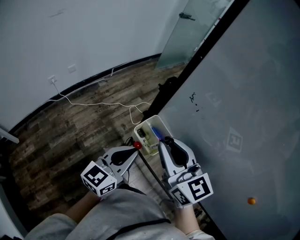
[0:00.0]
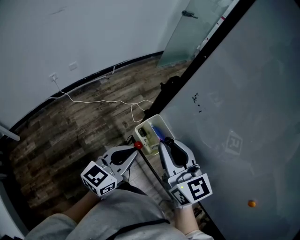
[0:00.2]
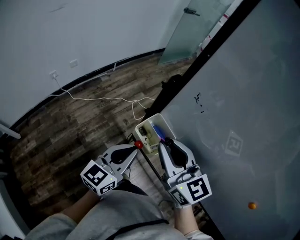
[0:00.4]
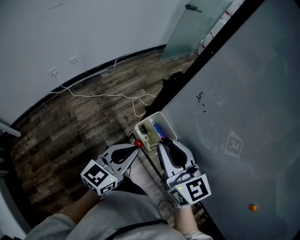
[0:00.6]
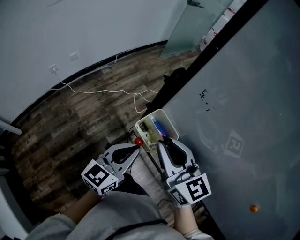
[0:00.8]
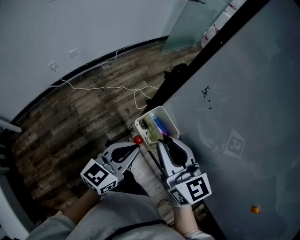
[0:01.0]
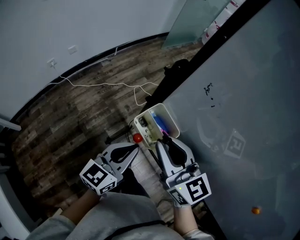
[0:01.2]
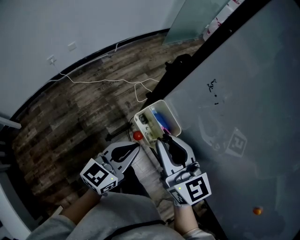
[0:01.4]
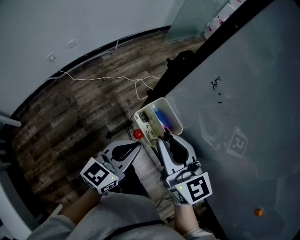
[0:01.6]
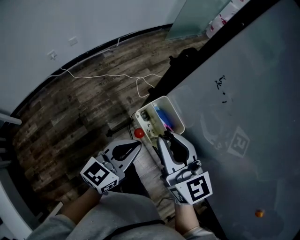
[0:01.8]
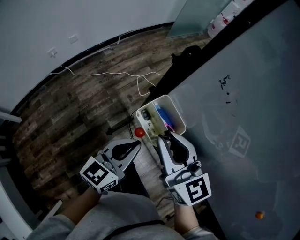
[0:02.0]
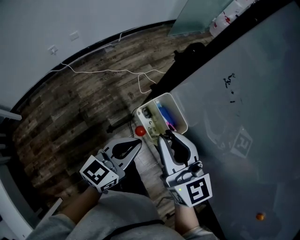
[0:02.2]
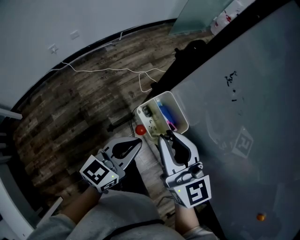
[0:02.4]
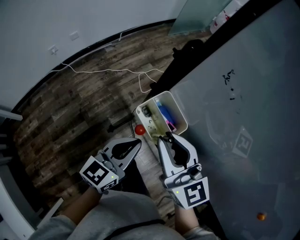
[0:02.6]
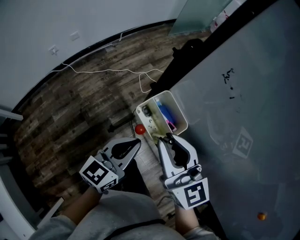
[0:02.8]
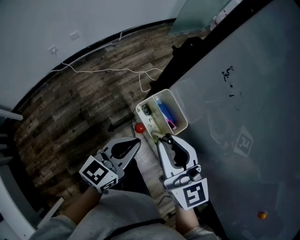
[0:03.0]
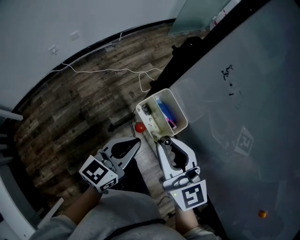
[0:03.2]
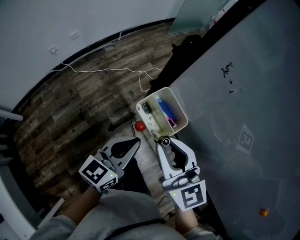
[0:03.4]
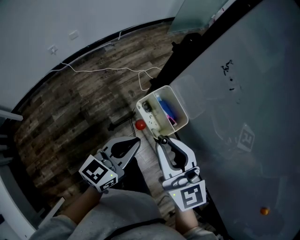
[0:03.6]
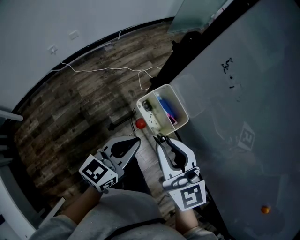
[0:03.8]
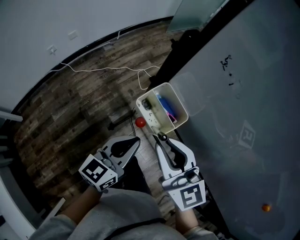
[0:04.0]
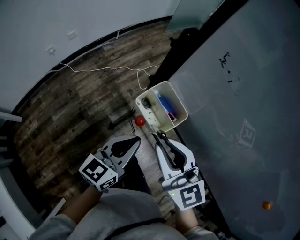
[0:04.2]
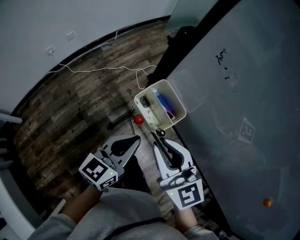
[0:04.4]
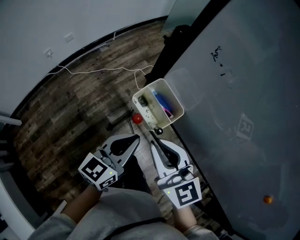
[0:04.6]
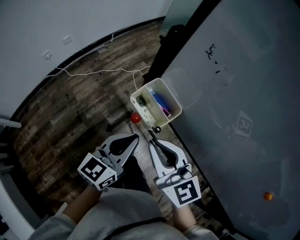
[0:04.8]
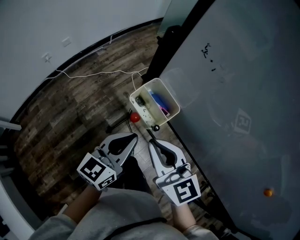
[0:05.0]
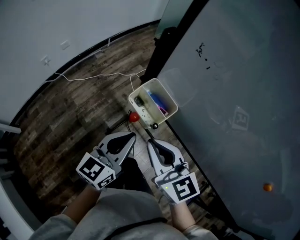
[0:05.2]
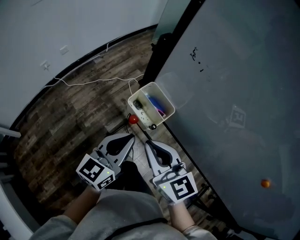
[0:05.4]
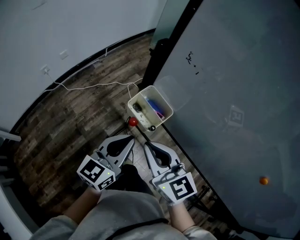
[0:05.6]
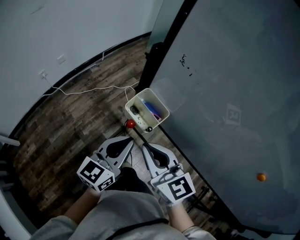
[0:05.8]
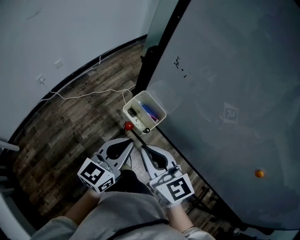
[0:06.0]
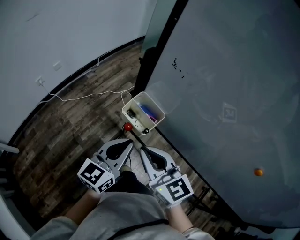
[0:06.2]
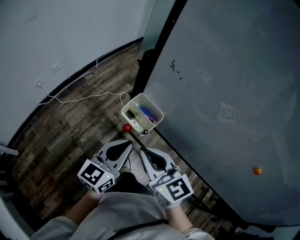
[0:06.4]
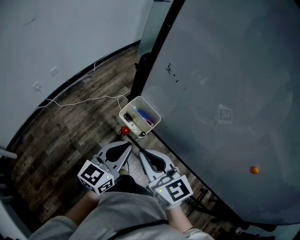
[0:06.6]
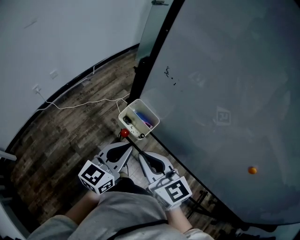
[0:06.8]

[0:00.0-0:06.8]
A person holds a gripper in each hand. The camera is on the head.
0:00.0 to 0:01.4: Both grippers travel together downward, approximately 5 cm.
0:01.4 to 0:04.0: The grippers stay close to where they were, moving slightly.
0:04.0 to 0:05.4: The grippers make only small movements.
0:05.4 to 0:06.8: There are only small adjustments of the grippers.

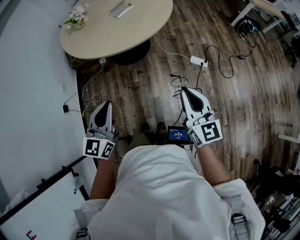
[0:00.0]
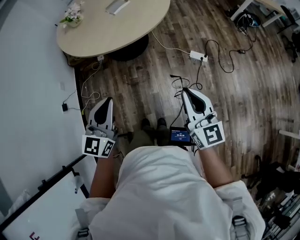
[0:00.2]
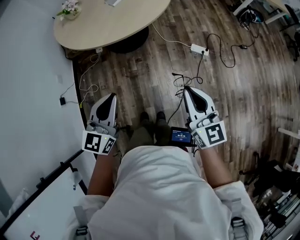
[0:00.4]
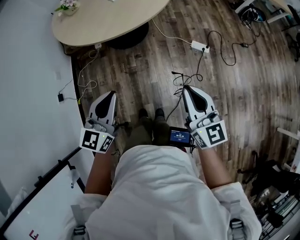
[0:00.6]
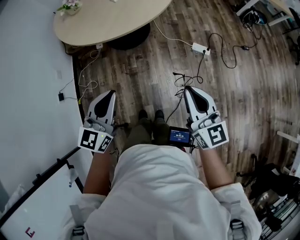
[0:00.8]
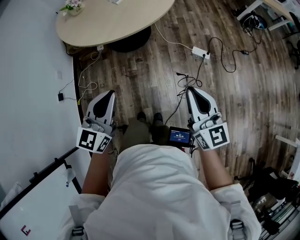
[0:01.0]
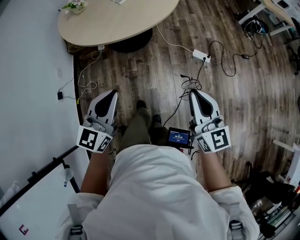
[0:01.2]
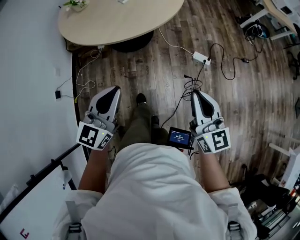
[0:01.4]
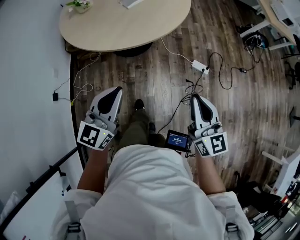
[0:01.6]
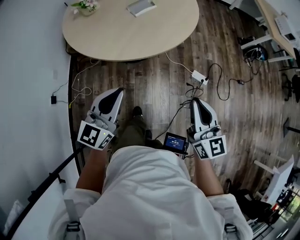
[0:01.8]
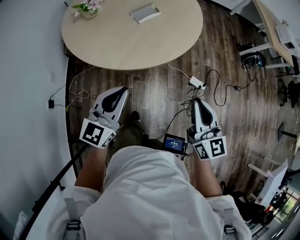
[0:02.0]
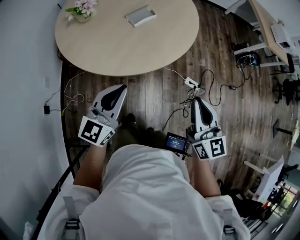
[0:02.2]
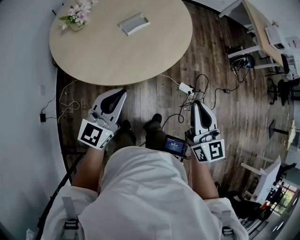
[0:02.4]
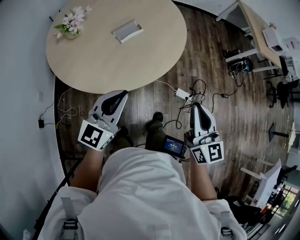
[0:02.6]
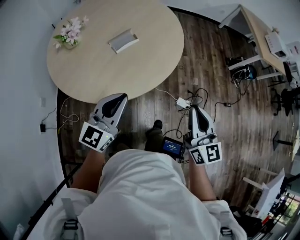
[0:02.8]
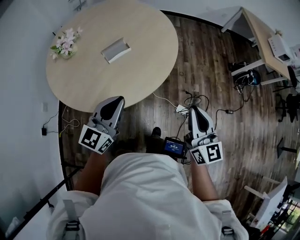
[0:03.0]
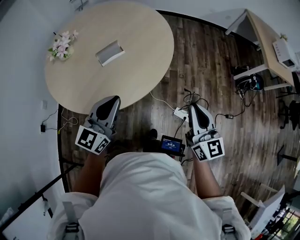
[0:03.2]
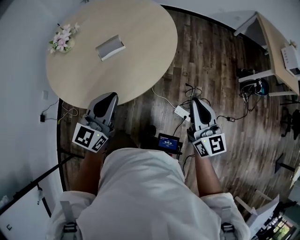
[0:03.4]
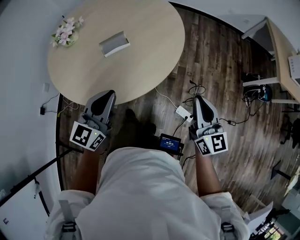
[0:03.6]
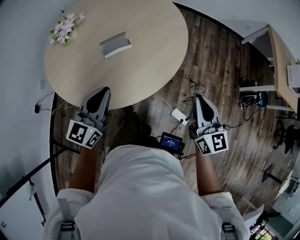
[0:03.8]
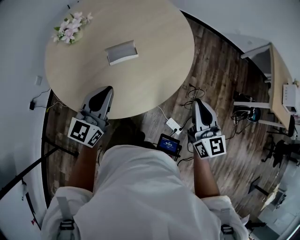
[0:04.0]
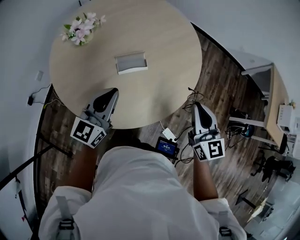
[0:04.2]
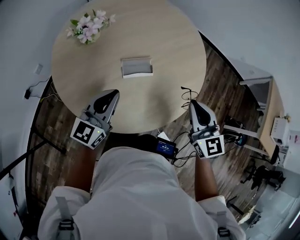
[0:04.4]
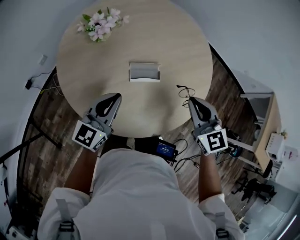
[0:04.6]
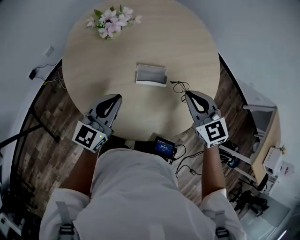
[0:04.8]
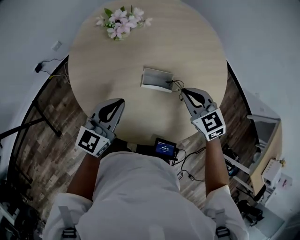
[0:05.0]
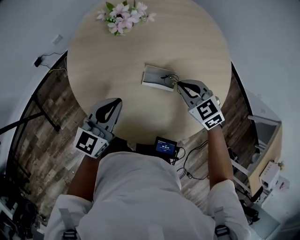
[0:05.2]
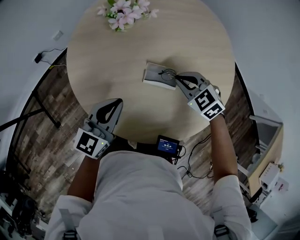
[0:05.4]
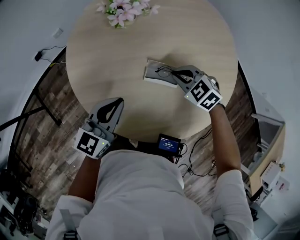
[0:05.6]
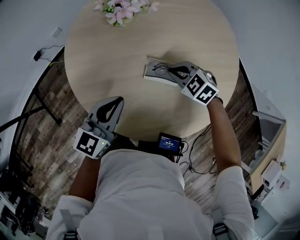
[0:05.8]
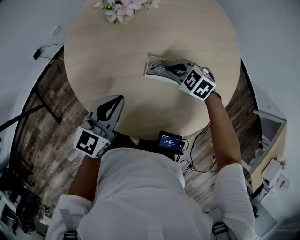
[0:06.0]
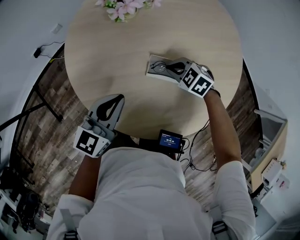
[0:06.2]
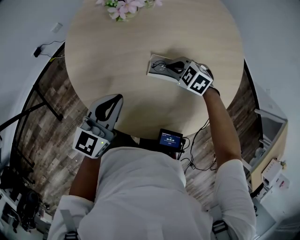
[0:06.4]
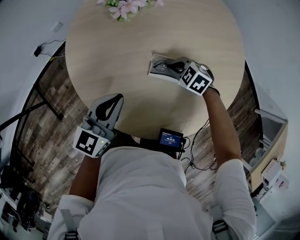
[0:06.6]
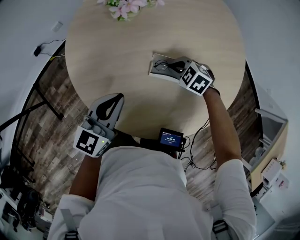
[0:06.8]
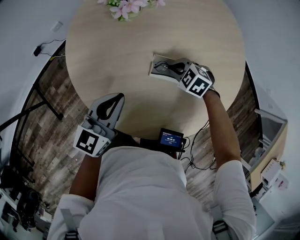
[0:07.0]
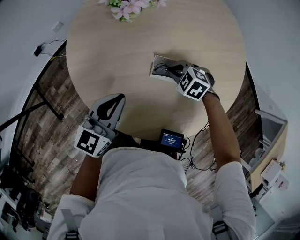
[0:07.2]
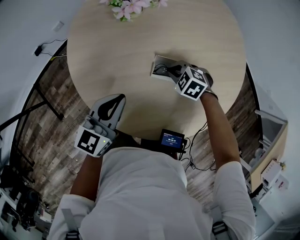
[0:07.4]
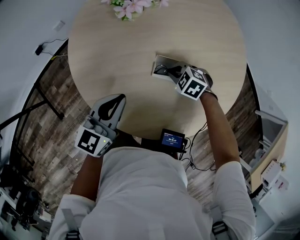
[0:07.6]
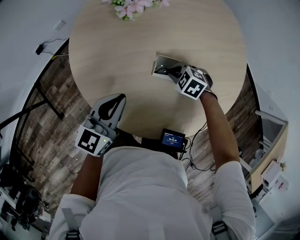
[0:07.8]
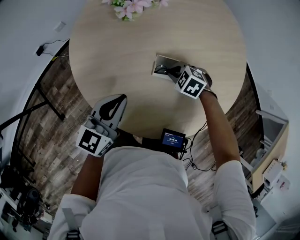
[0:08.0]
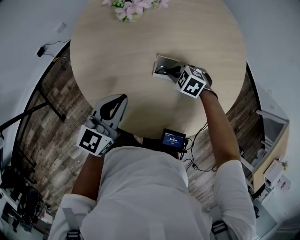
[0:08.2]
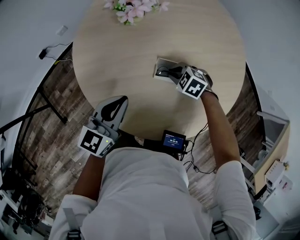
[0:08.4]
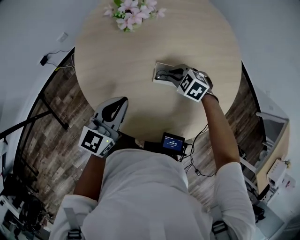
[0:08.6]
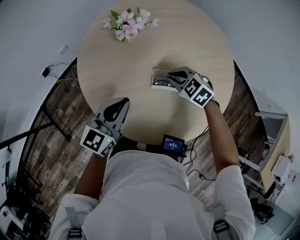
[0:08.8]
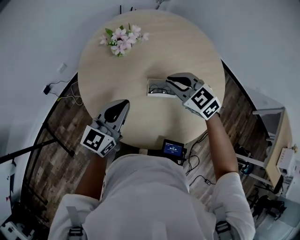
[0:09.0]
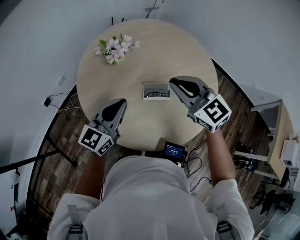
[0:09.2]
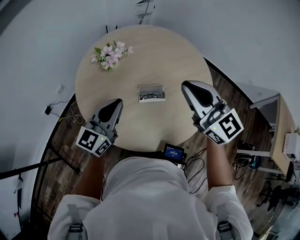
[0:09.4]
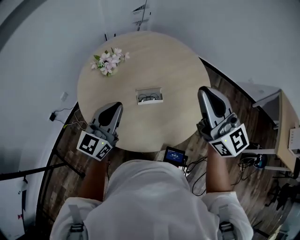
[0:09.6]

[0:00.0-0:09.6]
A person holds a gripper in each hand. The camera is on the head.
0:00.0 to 0:01.6: Both grippers travel together forward, approximately 10 cm.
0:01.6 to 0:03.2: Both grippers move forward, approximately 35 cm.
0:03.2 to 0:04.8: The right gripper moves roughly 50 cm, and angles its fingers downward, by about 30 degrees. Meanwhile the left gripper changes place by some 30 cm, and changes its angle by roughly 30 degrees.
0:04.8 to 0:06.4: The right gripper moves downward, about 25 cm, and angles its fingers downward, by about 30 degrees.
0:06.4 to 0:08.0: There are only small adjustments of the grippers.
0:08.0 to 0:09.6: The left gripper shifts about 20 cm upward, and turns by some 20 degrees, while the right gripper moves upward, some 50 cm, and tilts its fingers approximately 80 degrees upward.

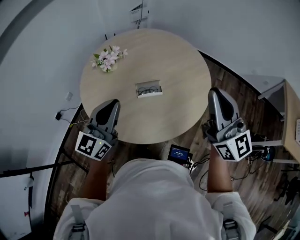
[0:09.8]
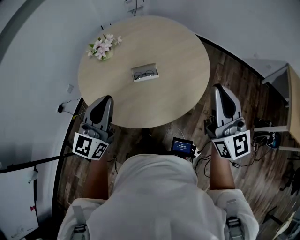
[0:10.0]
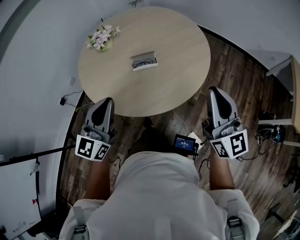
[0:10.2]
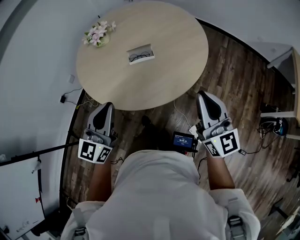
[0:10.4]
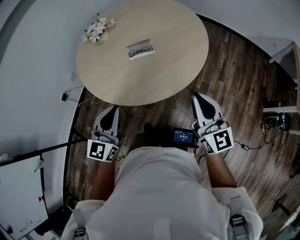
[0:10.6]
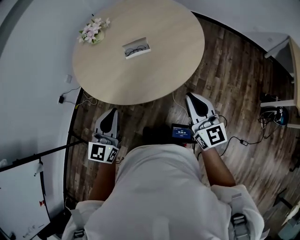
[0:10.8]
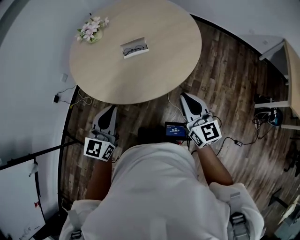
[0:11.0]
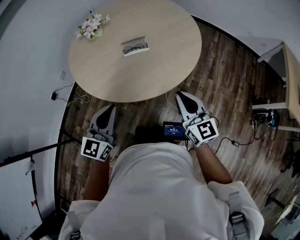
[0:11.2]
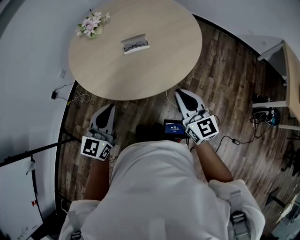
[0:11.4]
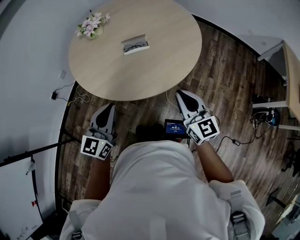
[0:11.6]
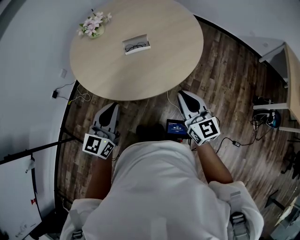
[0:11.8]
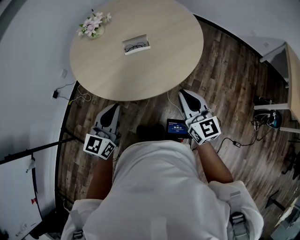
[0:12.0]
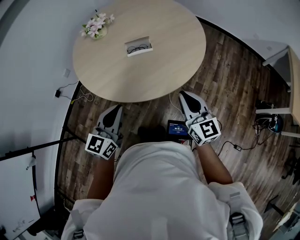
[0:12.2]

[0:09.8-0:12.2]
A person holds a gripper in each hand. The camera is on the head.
0:09.8 to 0:11.0: The right gripper heads downward and backward, covering approximately 30 cm, and rotates about 20 degrees, while the left gripper is displaced backward and downward by approximately 20 cm.
0:11.0 to 0:12.2: The grippers move only a little.

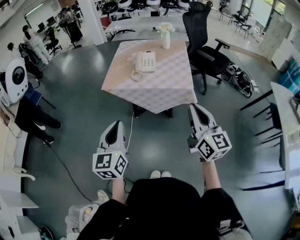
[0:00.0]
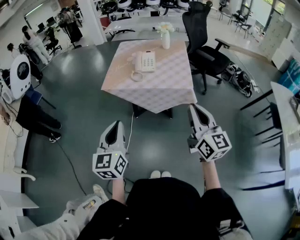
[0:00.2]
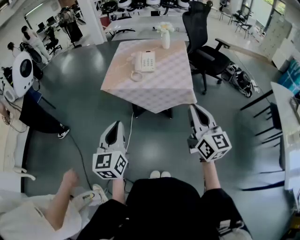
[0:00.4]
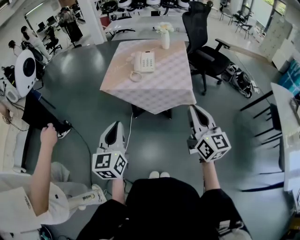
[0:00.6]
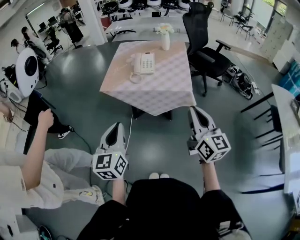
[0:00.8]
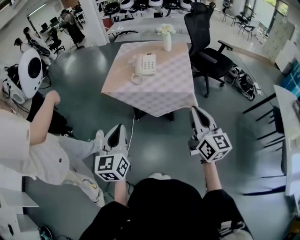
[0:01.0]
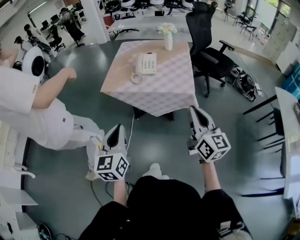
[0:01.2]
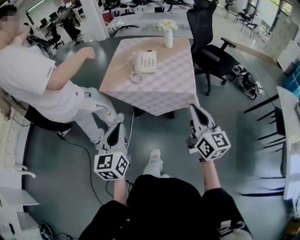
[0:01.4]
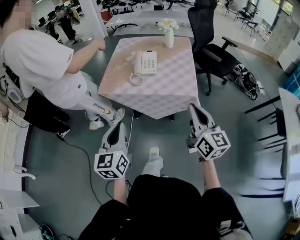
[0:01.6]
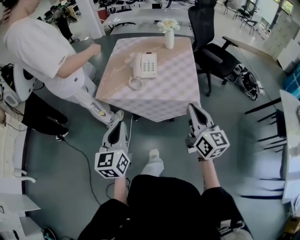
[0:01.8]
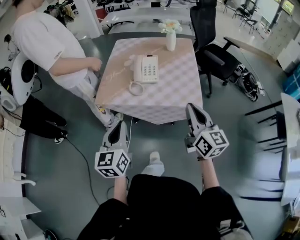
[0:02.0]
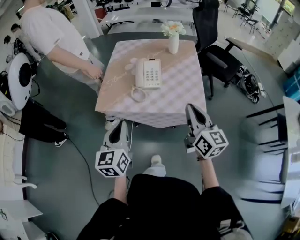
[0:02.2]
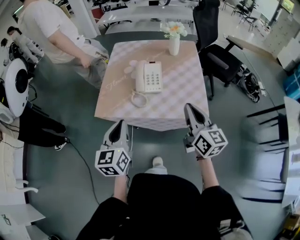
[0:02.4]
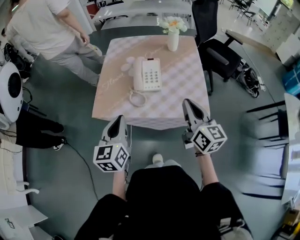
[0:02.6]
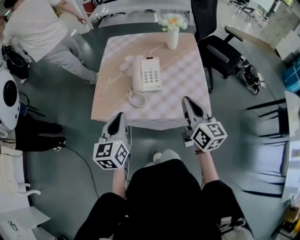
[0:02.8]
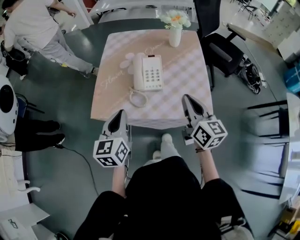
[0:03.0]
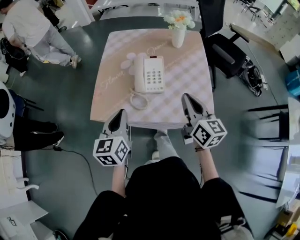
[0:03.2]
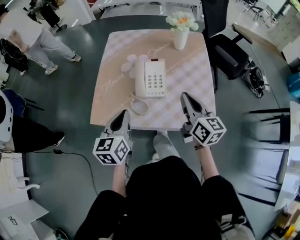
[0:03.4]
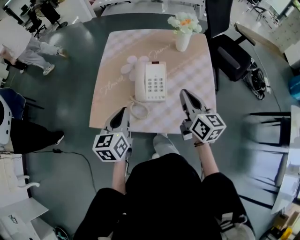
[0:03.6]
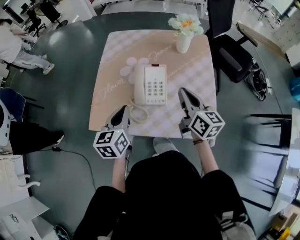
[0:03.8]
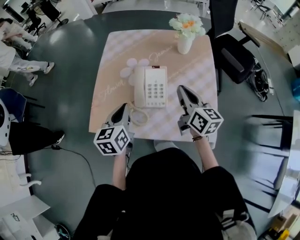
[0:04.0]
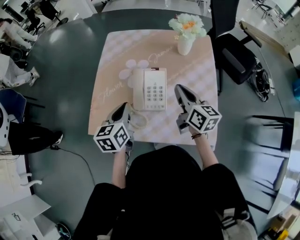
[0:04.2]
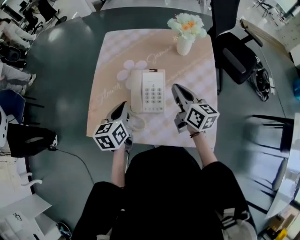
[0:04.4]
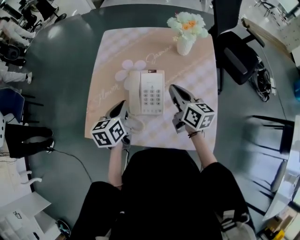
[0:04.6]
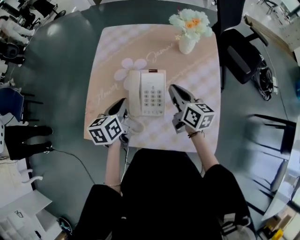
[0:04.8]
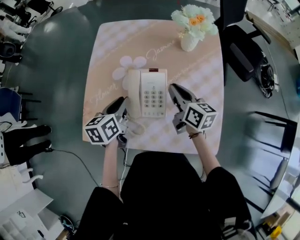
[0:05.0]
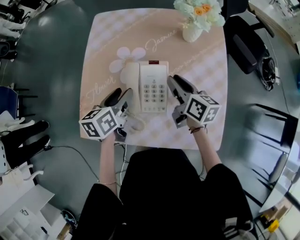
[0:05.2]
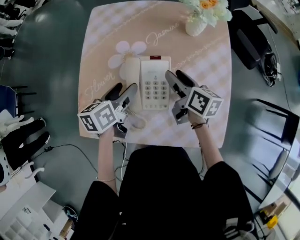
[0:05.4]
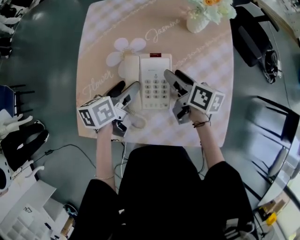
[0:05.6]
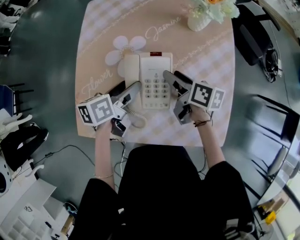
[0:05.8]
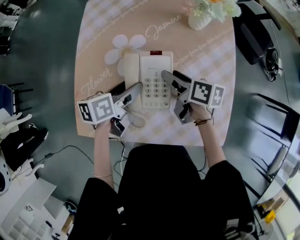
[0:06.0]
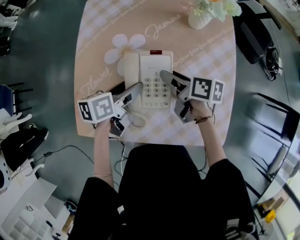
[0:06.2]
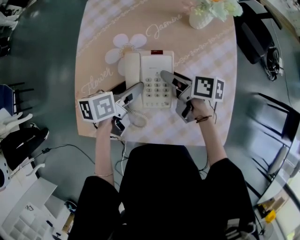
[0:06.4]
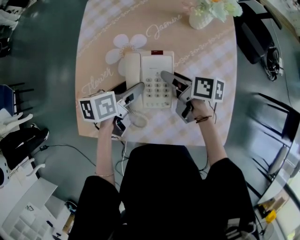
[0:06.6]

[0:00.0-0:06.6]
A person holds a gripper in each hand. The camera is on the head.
0:00.0 to 0:01.6: The left gripper goes roughly 10 cm forward. The right gripper is displaced forward and downward by roughly 10 cm.
0:01.6 to 0:03.2: The grippers both shift forward by approximately 30 cm.
0:03.2 to 0:05.0: Both grippers move forward and downward, roughly 25 cm. The left gripper changes its angle by about 30 degrees, while the right gripper rotates about 20 degrees.
0:05.0 to 0:06.6: The two grippers go approximately 5 cm downward. The left gripper turns by roughly 20 degrees, and opens up. The right gripper swivels approximately 30 degrees, and opens up.
